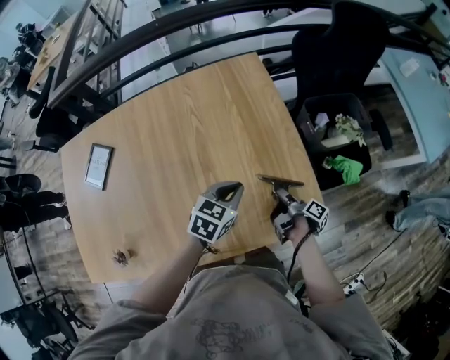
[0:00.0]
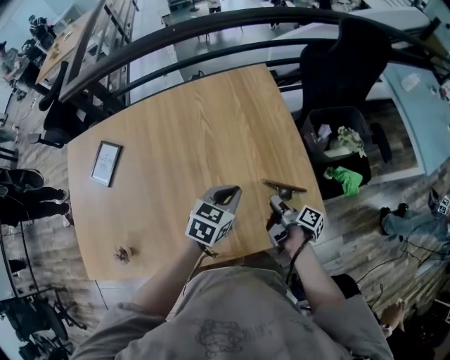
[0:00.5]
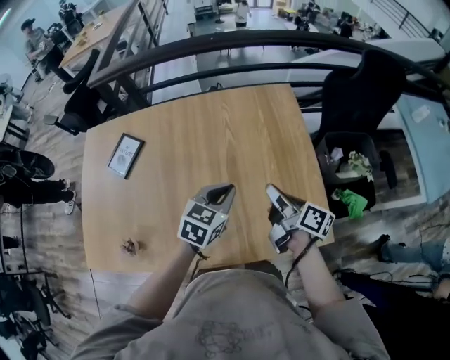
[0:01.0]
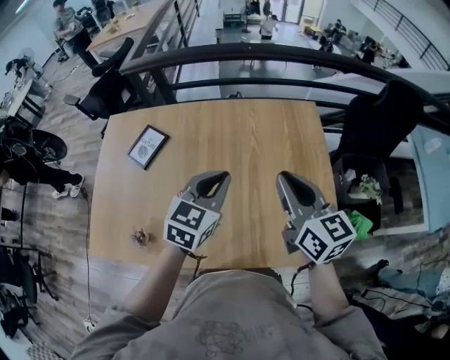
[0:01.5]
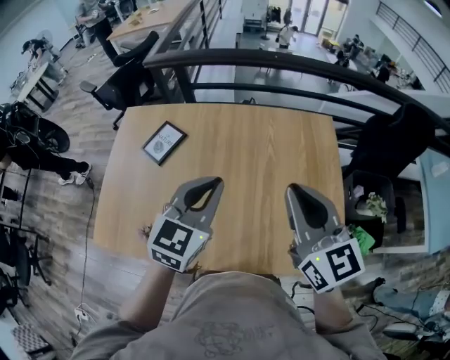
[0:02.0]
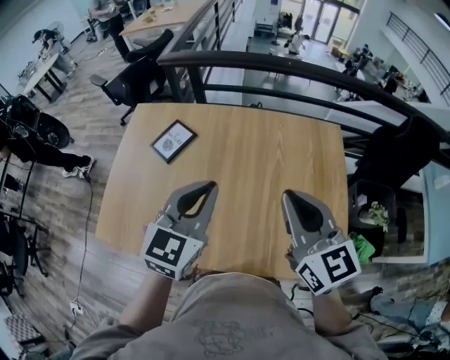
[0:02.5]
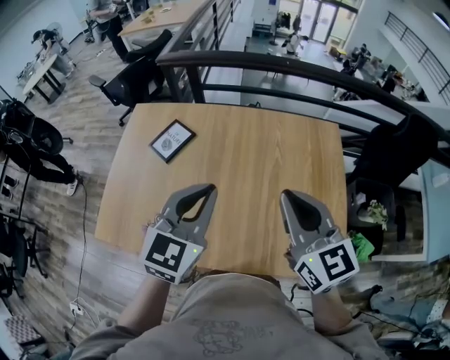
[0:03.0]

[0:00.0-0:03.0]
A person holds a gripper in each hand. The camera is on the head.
0:00.0 to 0:01.5: The left gripper is displaced to the left and upward by some 25 cm, and changes its angle by some 30 degrees; the right gripper moves upward and to the left, about 40 cm, rotates around the line of its fingers by some 90 degrees, counterclockwise from behind, and opens and closes again.
0:01.5 to 0:03.0: The right gripper moves to the left and upward, some 10 cm. The left gripper is displaced to the left, upward and backward by about 15 cm.

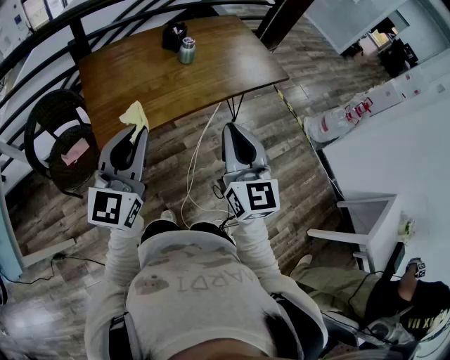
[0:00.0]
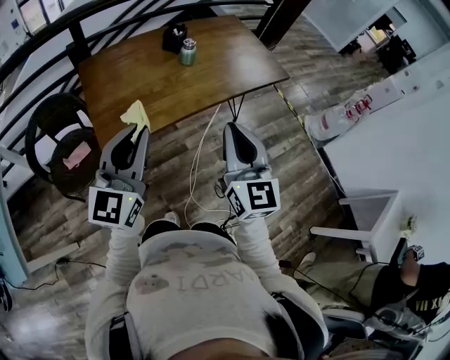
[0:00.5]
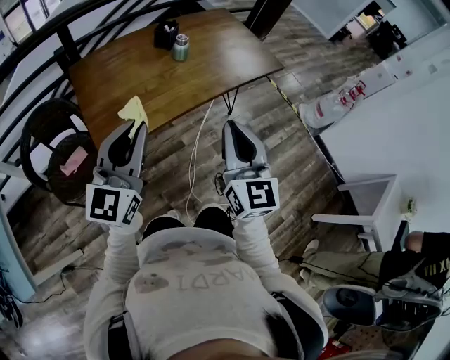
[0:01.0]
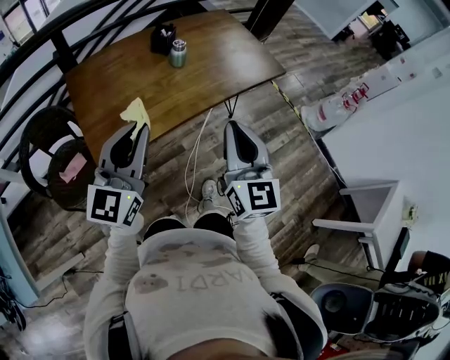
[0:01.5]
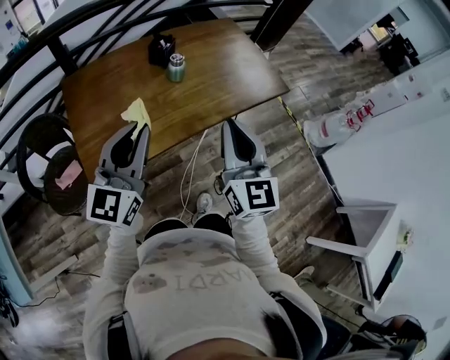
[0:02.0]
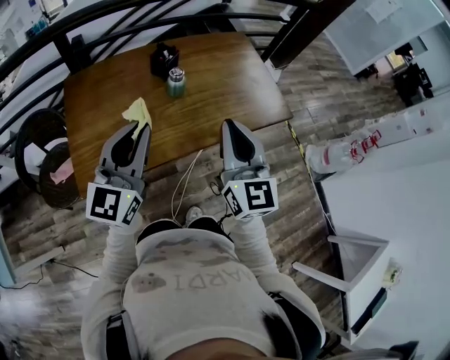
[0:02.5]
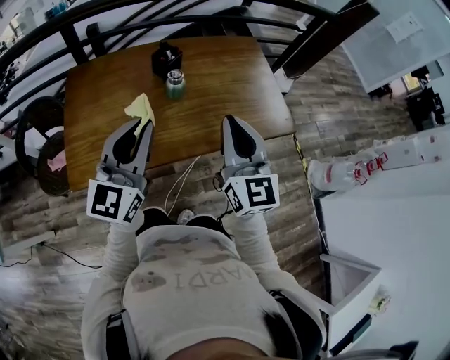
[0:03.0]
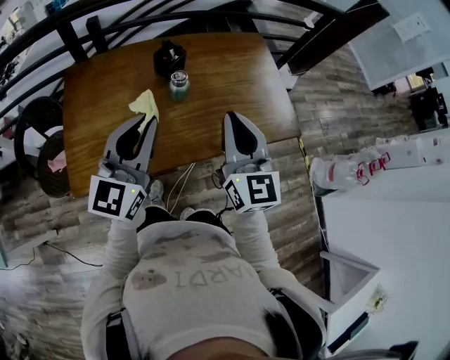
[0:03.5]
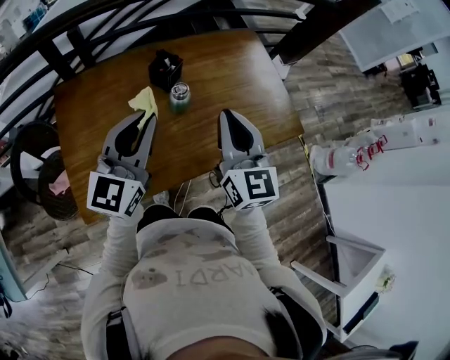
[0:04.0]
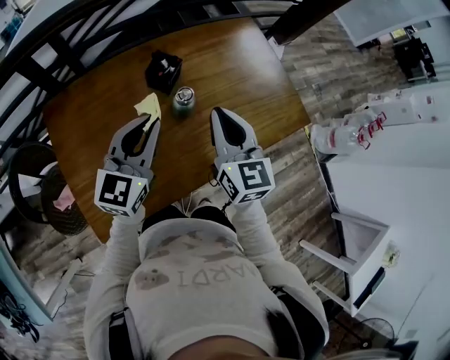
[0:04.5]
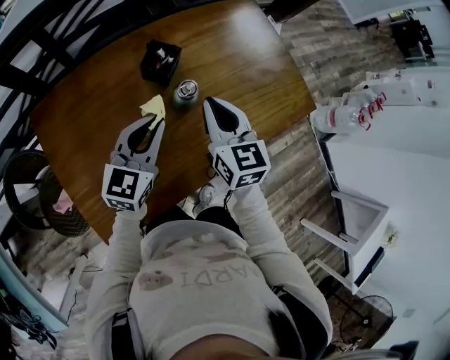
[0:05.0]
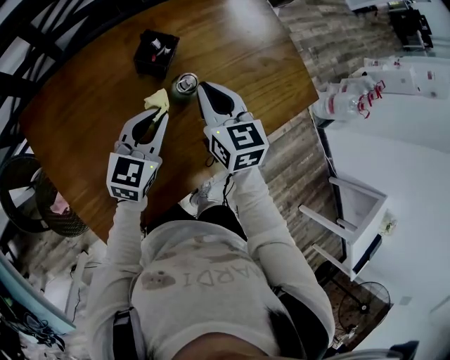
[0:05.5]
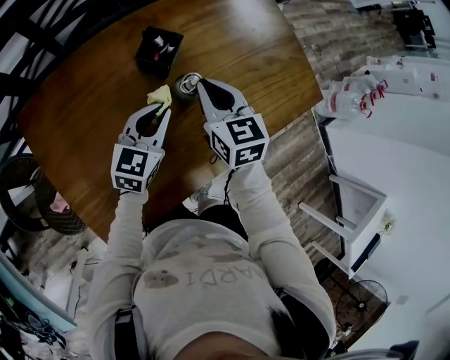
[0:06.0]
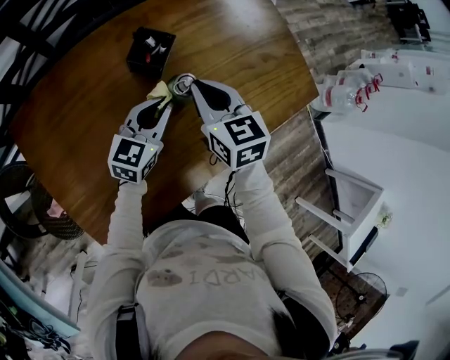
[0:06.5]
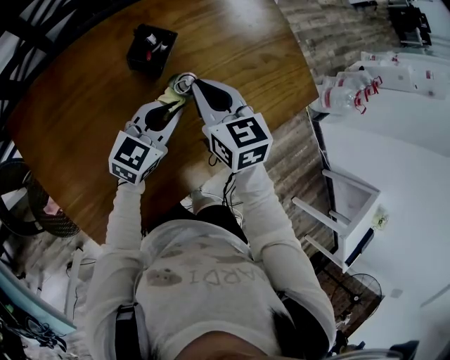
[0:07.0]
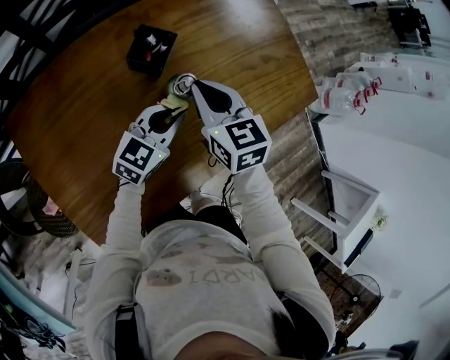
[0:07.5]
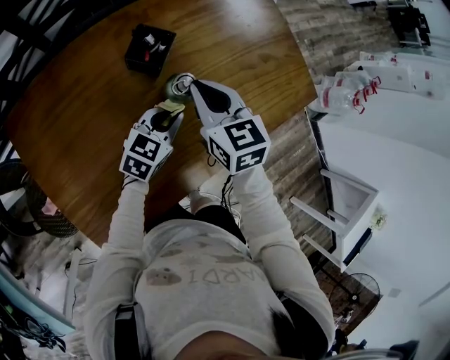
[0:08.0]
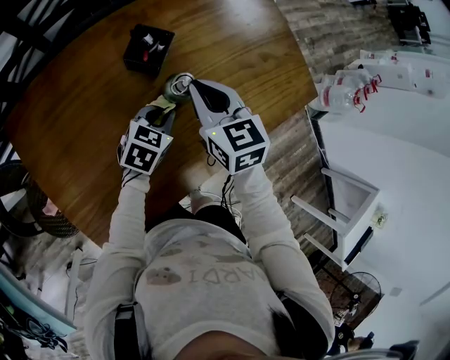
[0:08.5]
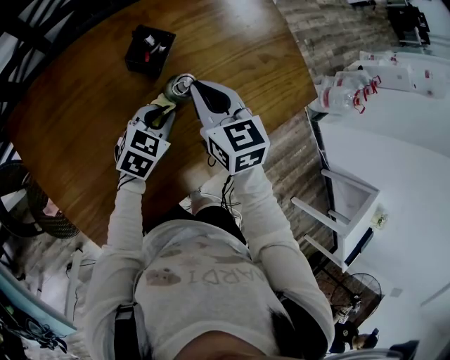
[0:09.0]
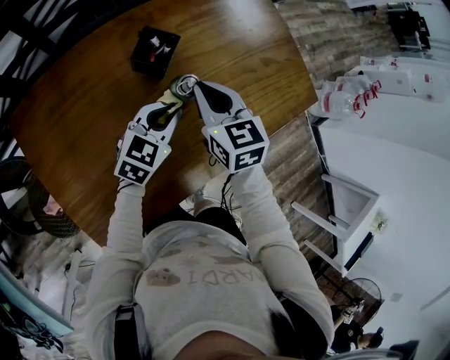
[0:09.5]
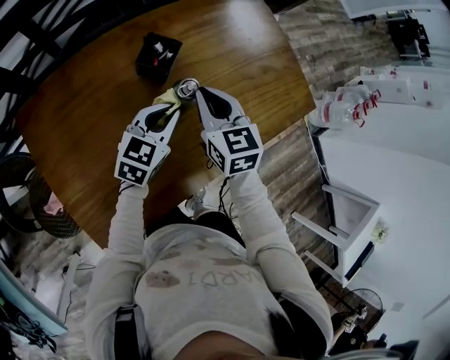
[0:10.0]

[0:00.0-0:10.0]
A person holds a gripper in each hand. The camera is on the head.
0:00.0 to 0:02.0: Both grippers move forward, some 15 cm.
0:02.0 to 0:04.0: The grippers both shift forward by about 25 cm.
0:04.0 to 0:06.0: The left gripper heads downward and forward, covering approximately 30 cm, and turns by about 30 degrees. The right gripper travels downward, forward and to the left by roughly 25 cm, and swivels approximately 30 degrees.
0:06.0 to 0:08.0: The left gripper heads downward and to the right, covering roughly 10 cm.
0:08.0 to 0:10.0: The left gripper travels upward by roughly 5 cm.

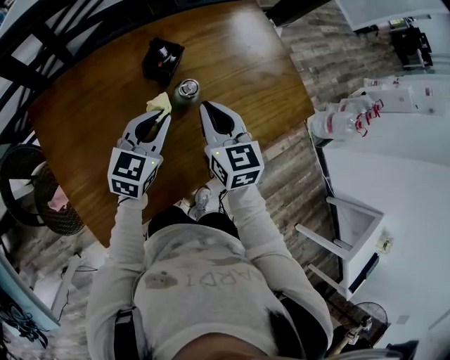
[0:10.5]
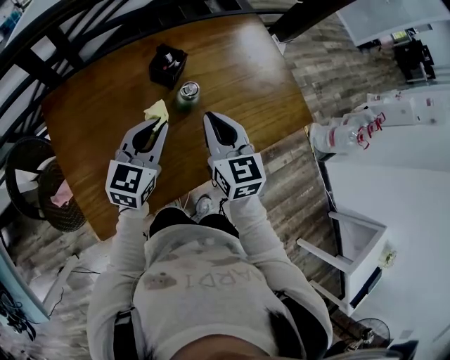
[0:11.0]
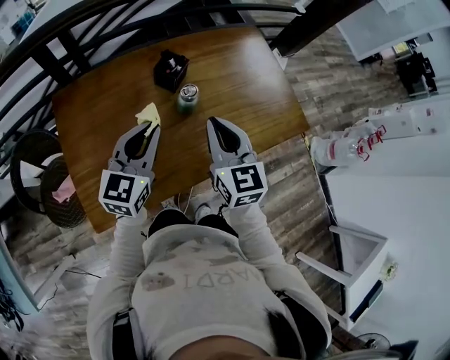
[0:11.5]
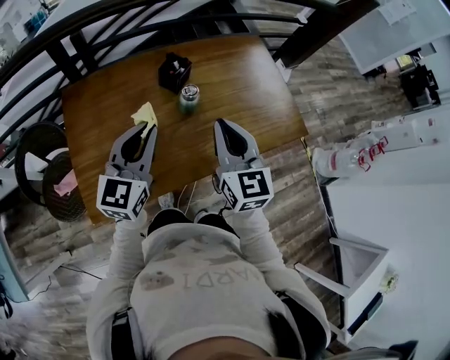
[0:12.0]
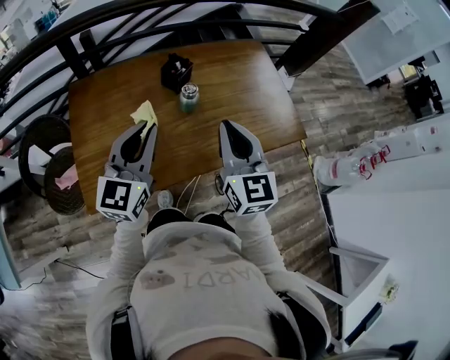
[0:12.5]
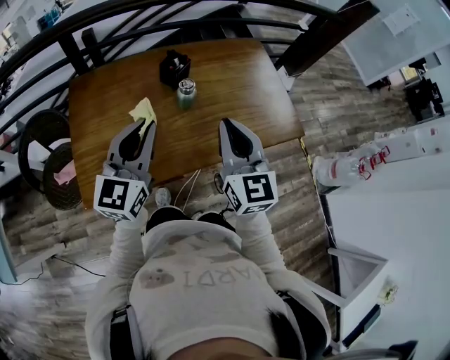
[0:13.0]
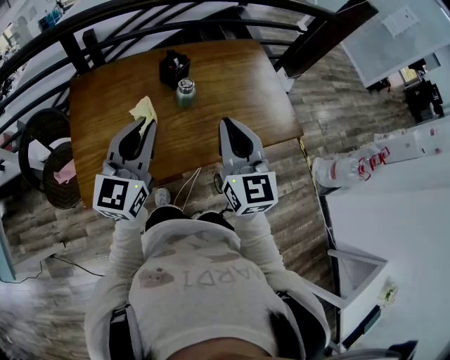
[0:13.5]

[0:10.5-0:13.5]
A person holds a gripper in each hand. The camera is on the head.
0:10.5 to 0:12.0: The grippers both shift upward and backward by about 20 cm. The left gripper rotates some 20 degrees.
0:12.0 to 0:13.5: The two grippers go approximately 5 cm backward.

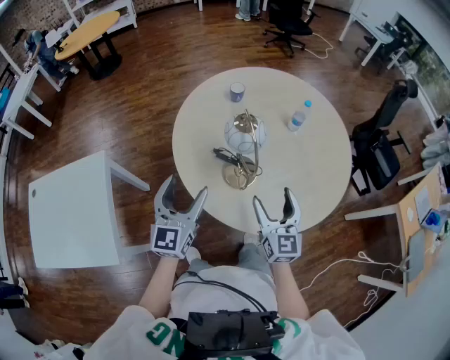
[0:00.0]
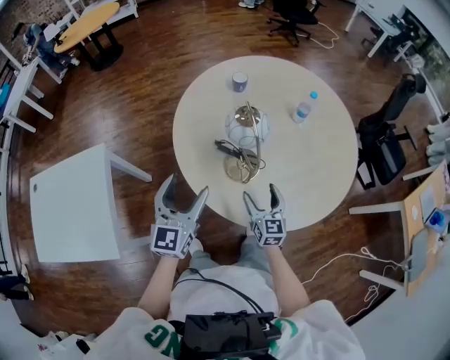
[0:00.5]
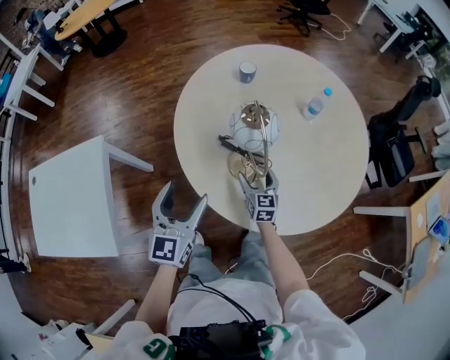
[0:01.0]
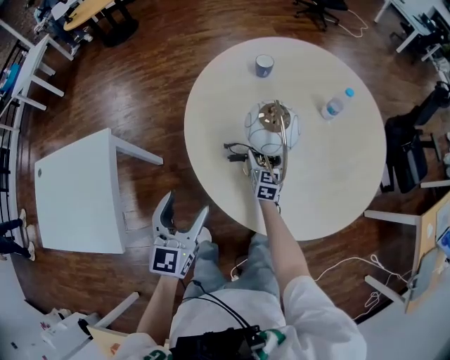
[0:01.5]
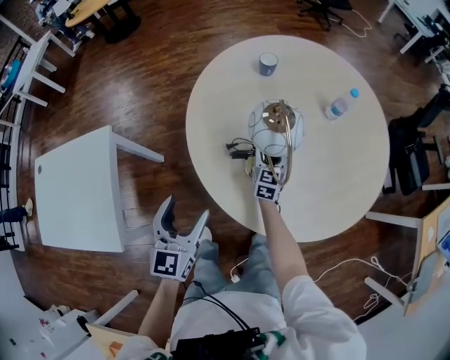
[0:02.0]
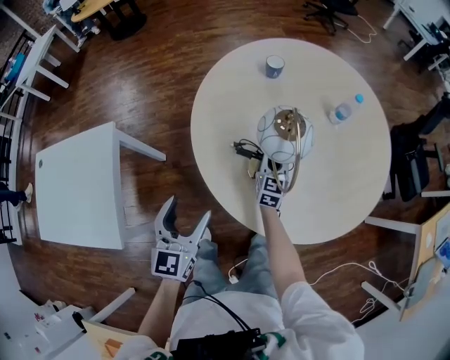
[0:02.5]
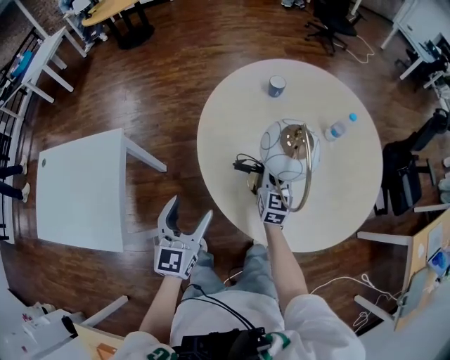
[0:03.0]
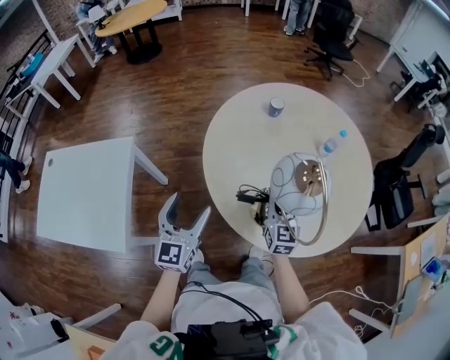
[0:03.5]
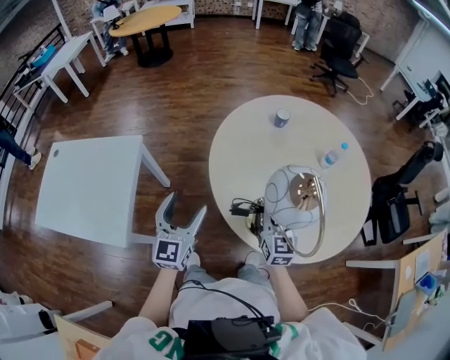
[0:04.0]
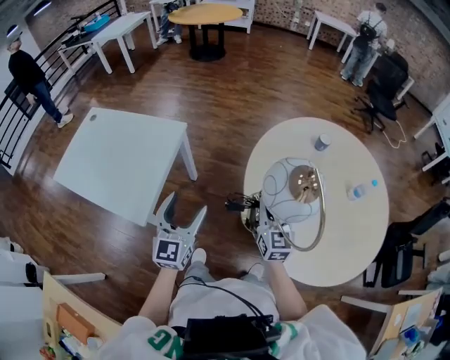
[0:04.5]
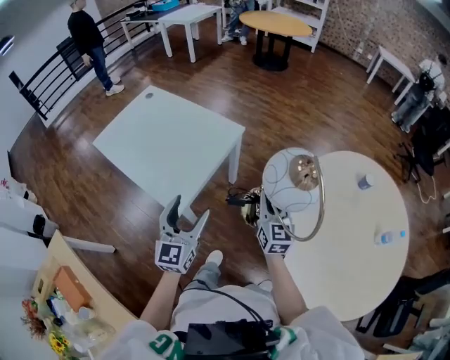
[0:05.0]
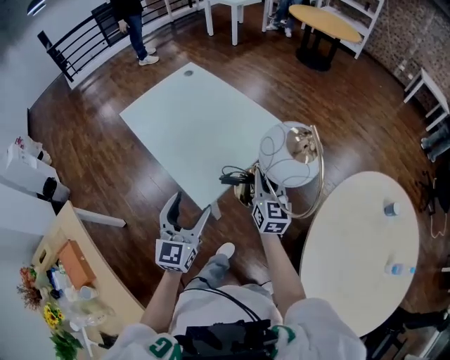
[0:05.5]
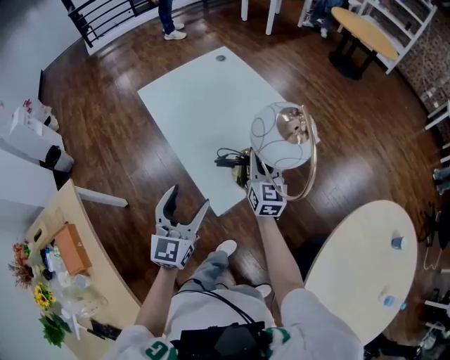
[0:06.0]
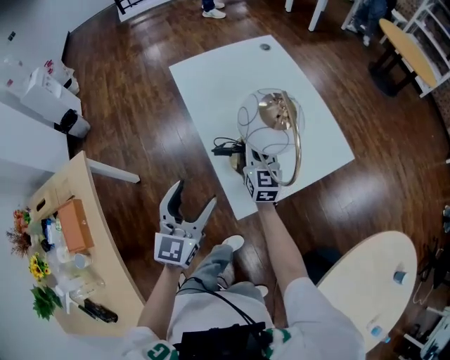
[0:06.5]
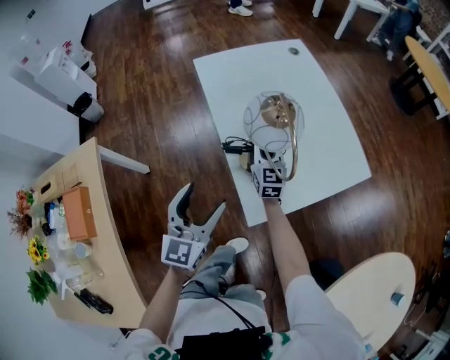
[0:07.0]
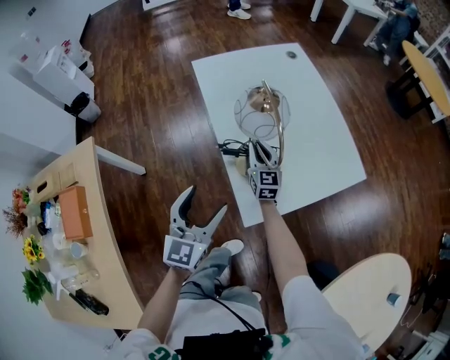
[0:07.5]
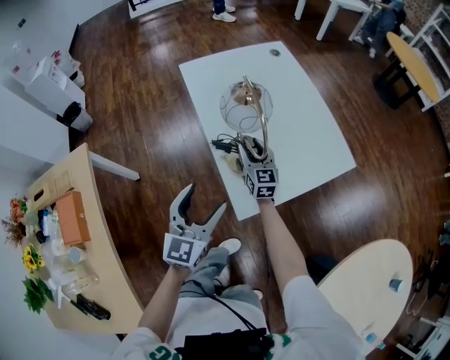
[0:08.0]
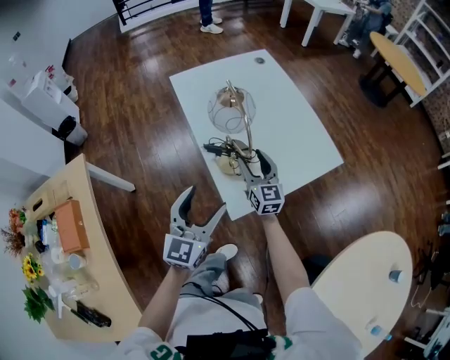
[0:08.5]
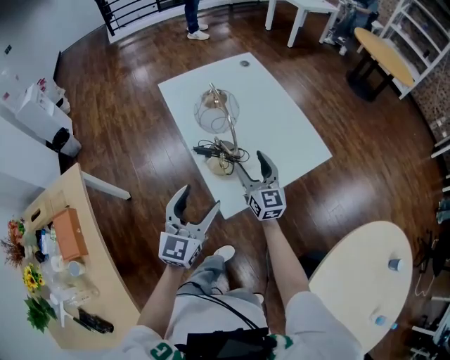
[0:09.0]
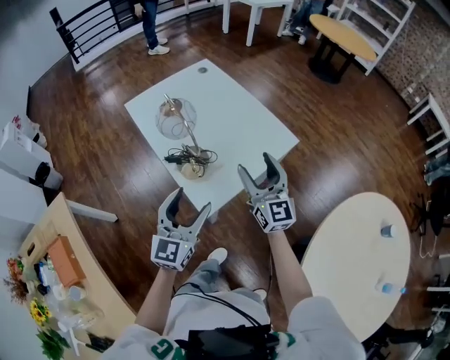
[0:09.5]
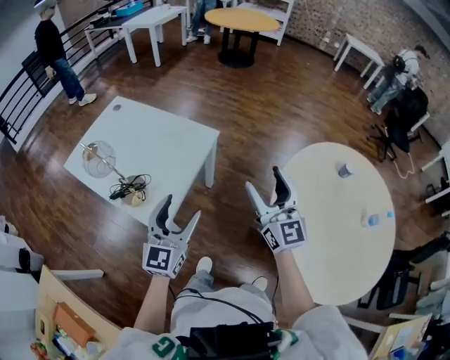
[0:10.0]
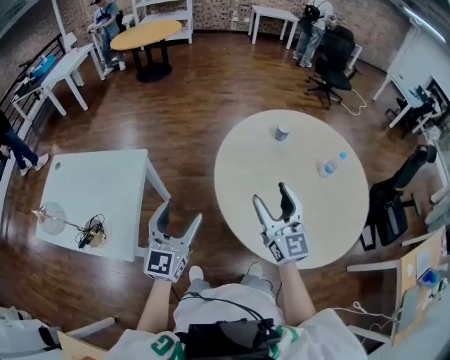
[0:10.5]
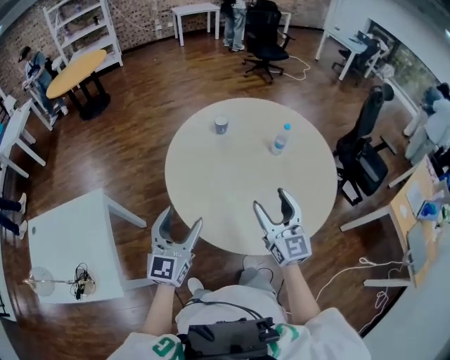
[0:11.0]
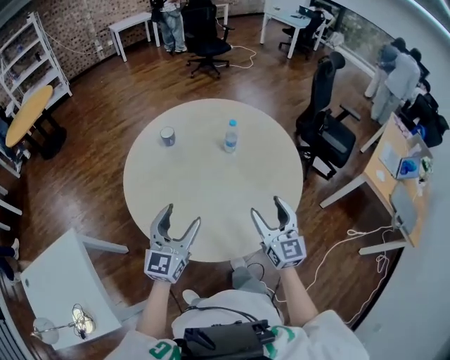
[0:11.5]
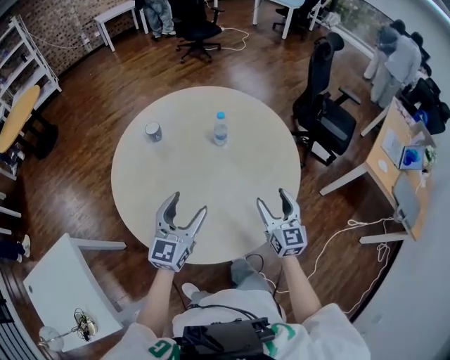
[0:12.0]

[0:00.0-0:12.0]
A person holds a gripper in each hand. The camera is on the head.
0:00.0 to 0:02.0: The right gripper travels downward and forward by approximately 30 cm; the left gripper goes about 10 cm downward.
0:02.0 to 0:04.0: The left gripper goes roughly 10 cm upward and to the left. Meanwhile the right gripper shifts approximately 25 cm upward and backward, and closes.
0:04.0 to 0:06.0: Both grippers are carried roughly 60 cm. The right gripper rotates roughly 60 degrees. Meanwhile the left gripper turns by approximately 50 degrees.
0:06.0 to 0:08.0: The right gripper travels to the left, downward and forward by approximately 25 cm, and changes its angle by approximately 20 degrees.
0:08.0 to 0:10.0: The left gripper shifts by approximately 25 cm, and changes its angle by about 40 degrees; the right gripper moves some 60 cm, and turns by approximately 50 degrees.
0:10.0 to 0:12.0: The two grippers travel together, about 70 cm. The right gripper rotates about 70 degrees. The left gripper changes its angle by about 70 degrees.
